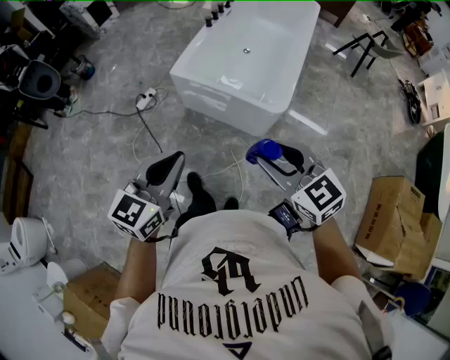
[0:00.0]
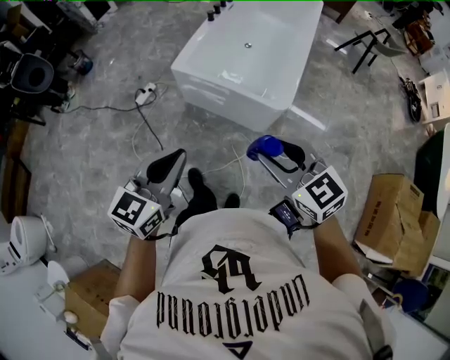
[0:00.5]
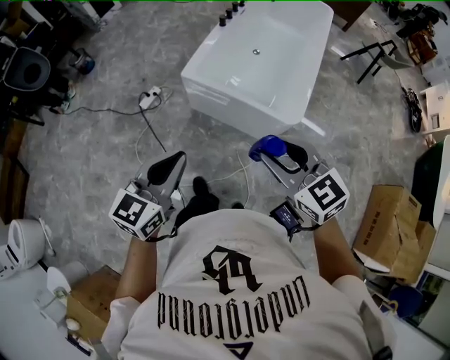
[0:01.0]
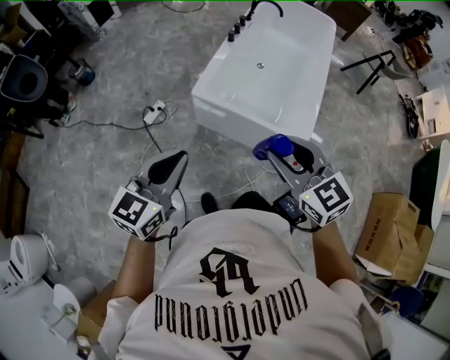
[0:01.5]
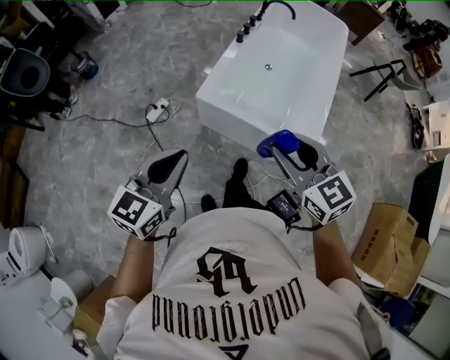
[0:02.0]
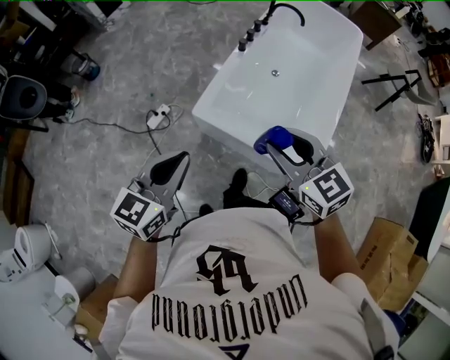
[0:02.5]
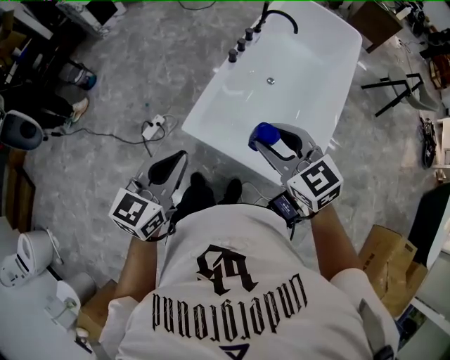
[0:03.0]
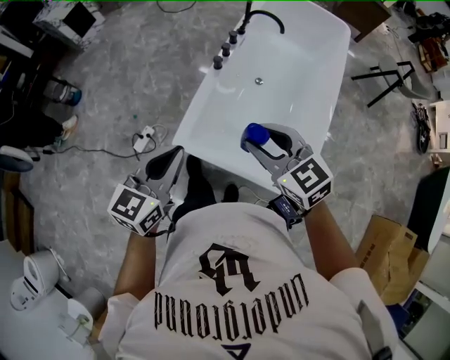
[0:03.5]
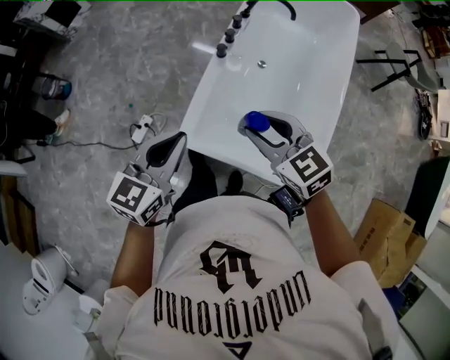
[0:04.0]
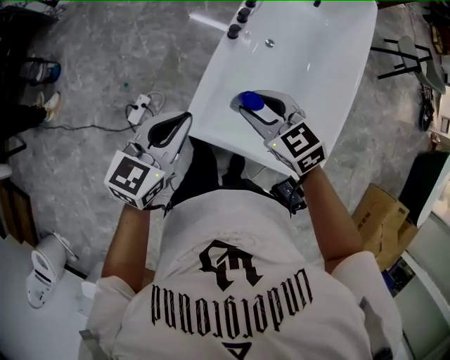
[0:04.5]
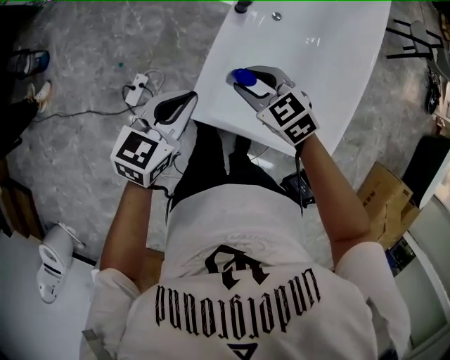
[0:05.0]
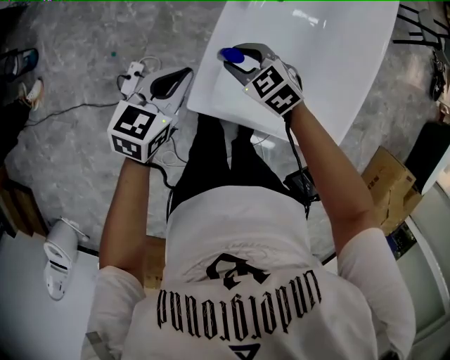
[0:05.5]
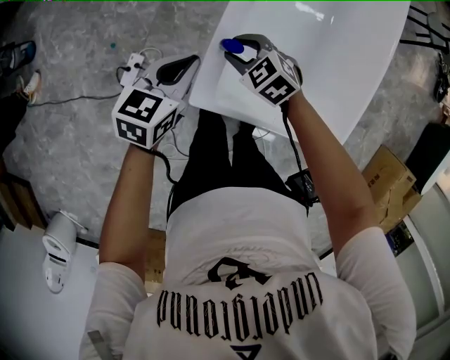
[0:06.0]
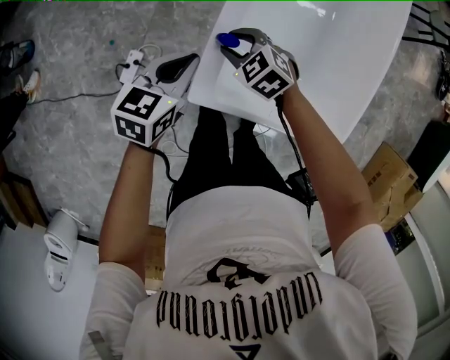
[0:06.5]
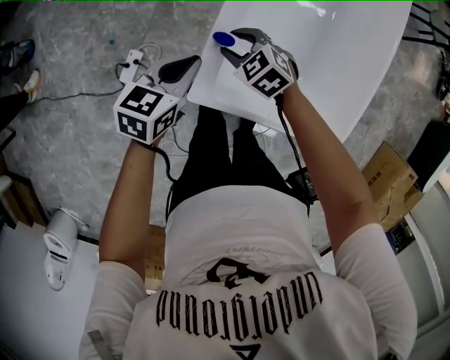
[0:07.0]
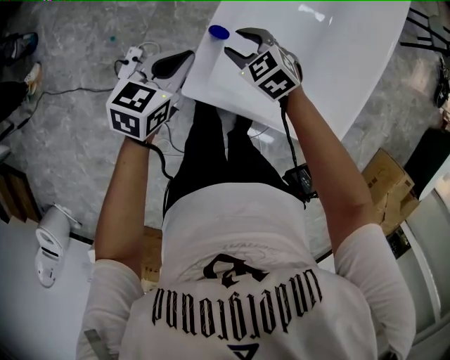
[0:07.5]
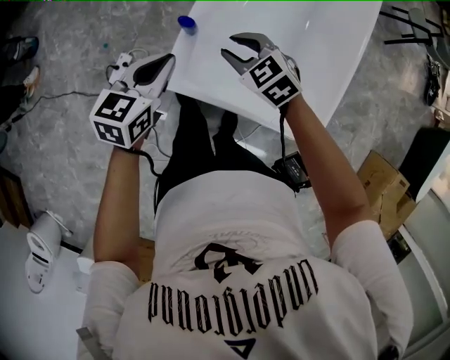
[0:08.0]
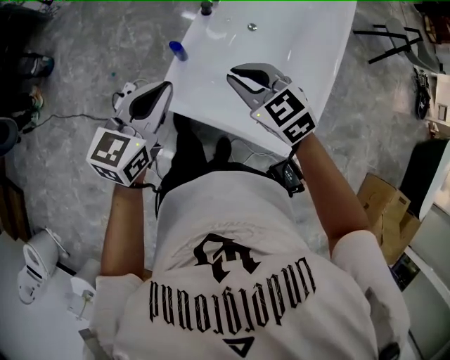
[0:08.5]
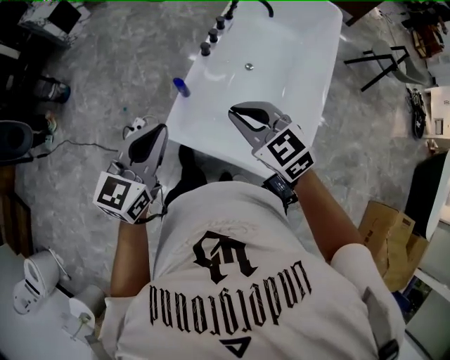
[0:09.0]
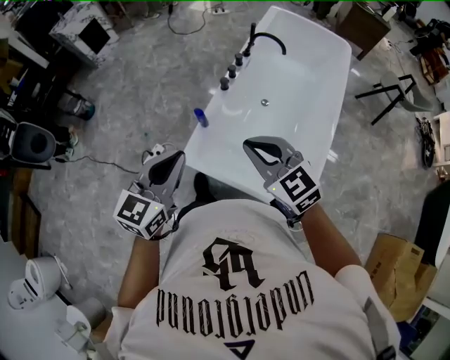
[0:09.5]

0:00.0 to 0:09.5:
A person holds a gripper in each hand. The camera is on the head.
0:00.0 to 0:02.0: The two grippers go some 30 cm forward and to the left.
0:02.0 to 0:04.0: The pair of grippers is taken forward, approximately 40 cm.
0:04.0 to 0:05.5: The left gripper shifts roughly 30 cm downward and forward. The right gripper shifts roughly 35 cm downward, to the left and forward, and turns by about 20 degrees.
0:07.5 to 0:09.5: Both grippers move upward and backward, about 50 cm. The left gripper swivels approximately 30 degrees; the right gripper points its fingers approximately 30 degrees further upward, and closes.

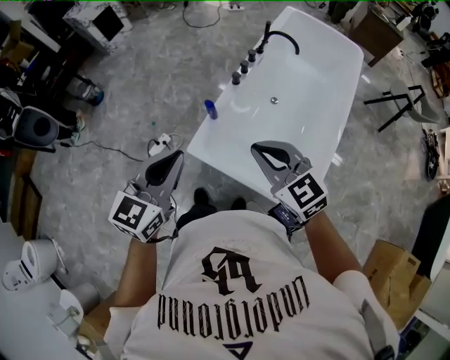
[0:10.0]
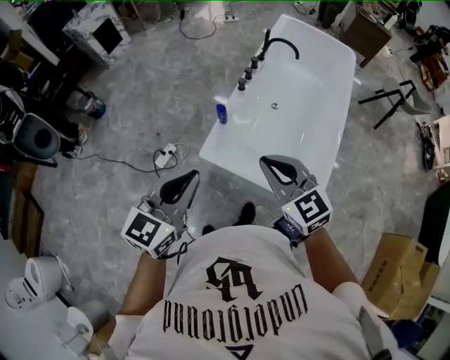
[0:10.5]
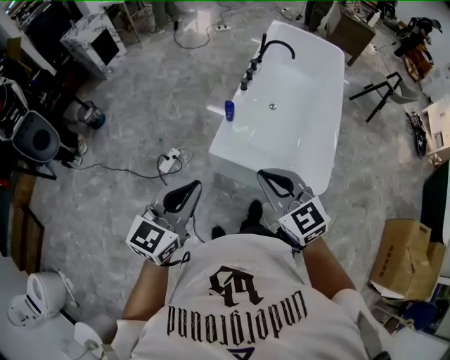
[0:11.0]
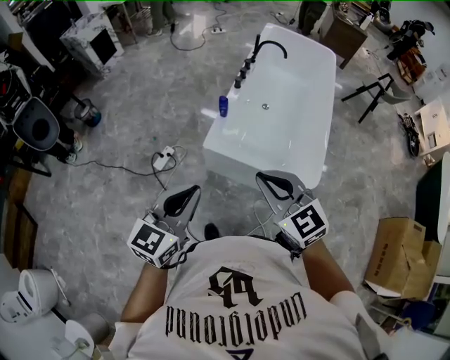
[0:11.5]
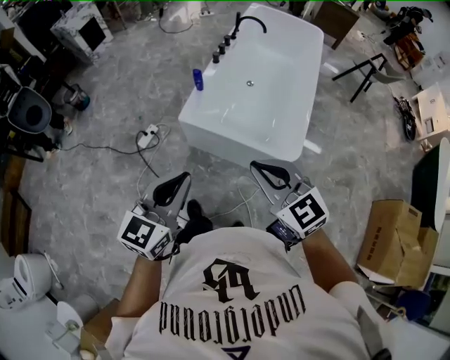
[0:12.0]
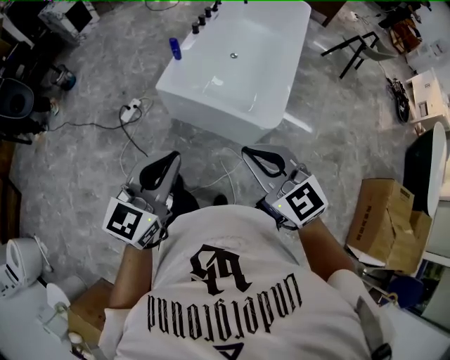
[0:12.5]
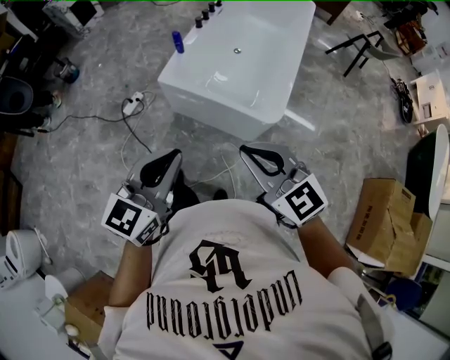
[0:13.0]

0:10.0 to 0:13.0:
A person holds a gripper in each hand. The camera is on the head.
0:10.0 to 0:11.5: The two grippers go about 30 cm backward and to the left.
0:11.5 to 0:13.0: The right gripper shifts approximately 30 cm backward and to the right; the left gripper is displaced to the right and backward by roughly 30 cm.

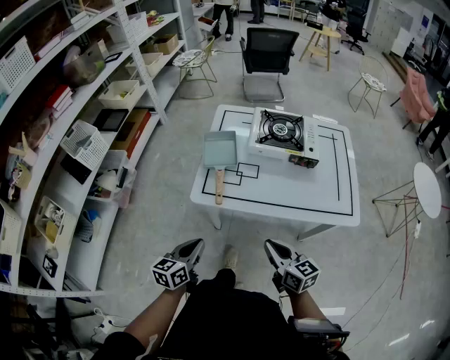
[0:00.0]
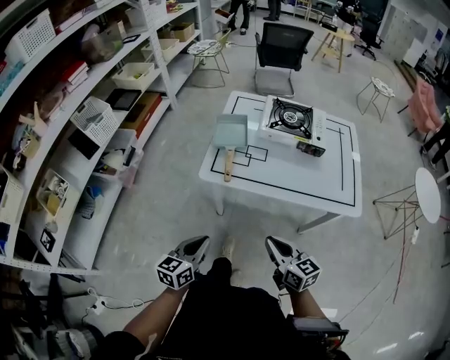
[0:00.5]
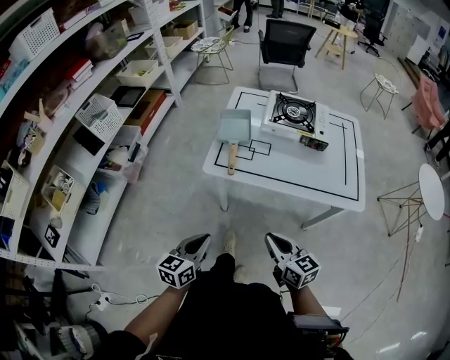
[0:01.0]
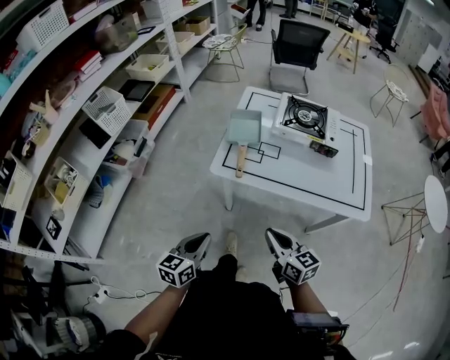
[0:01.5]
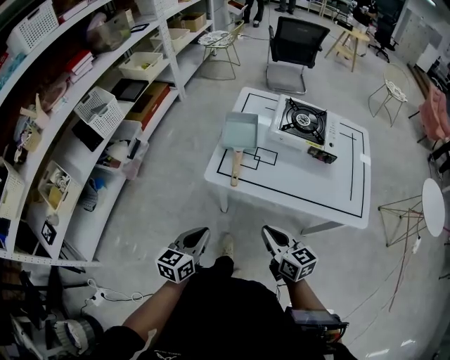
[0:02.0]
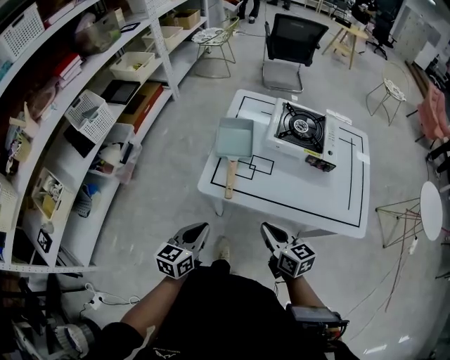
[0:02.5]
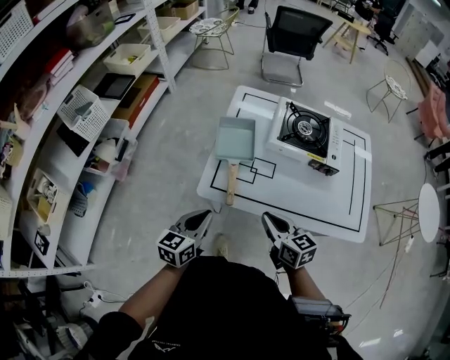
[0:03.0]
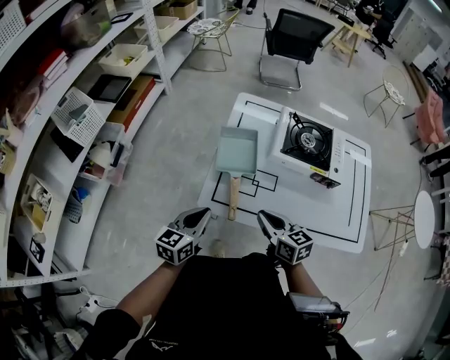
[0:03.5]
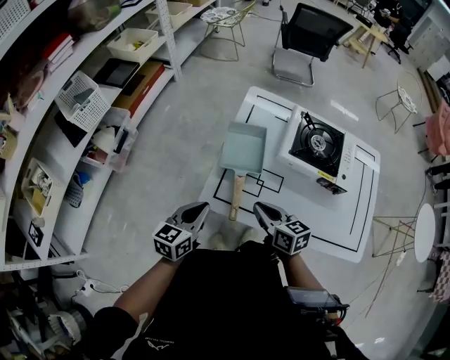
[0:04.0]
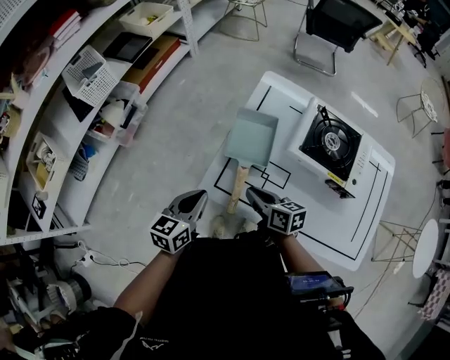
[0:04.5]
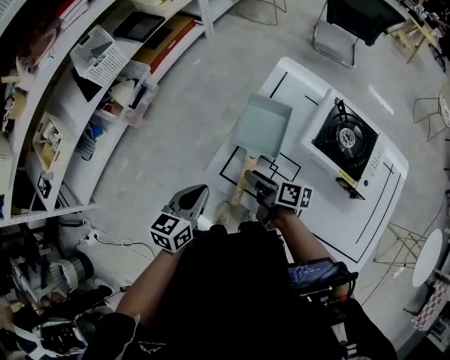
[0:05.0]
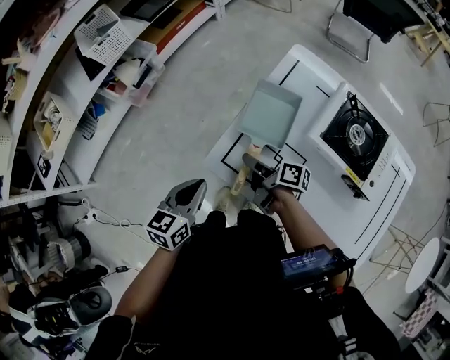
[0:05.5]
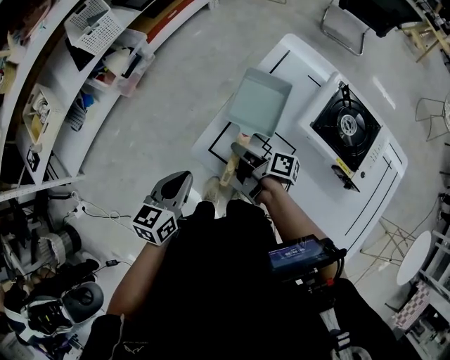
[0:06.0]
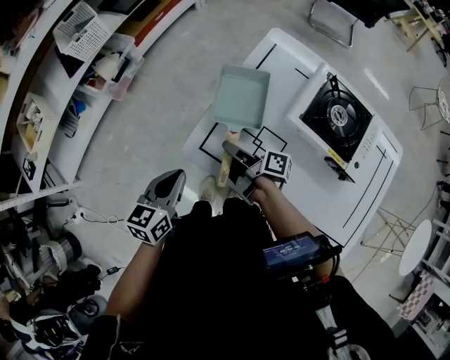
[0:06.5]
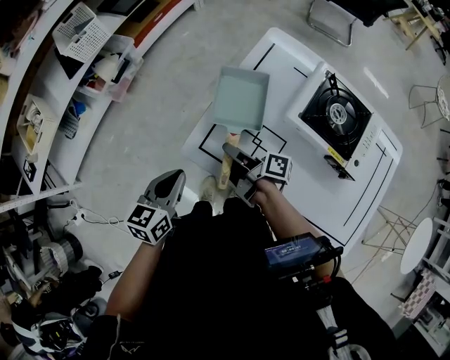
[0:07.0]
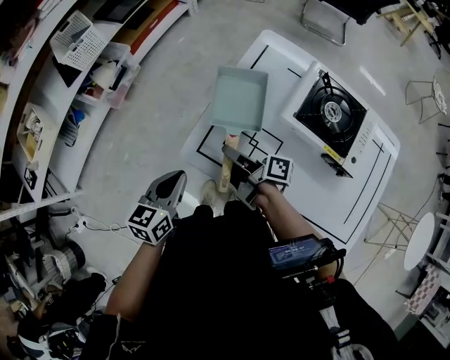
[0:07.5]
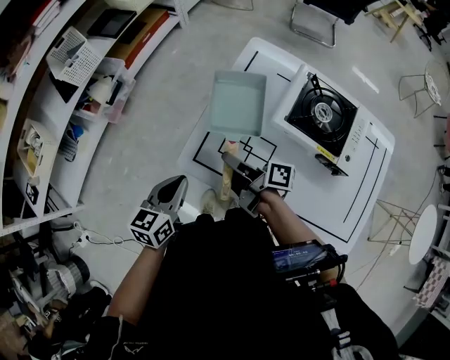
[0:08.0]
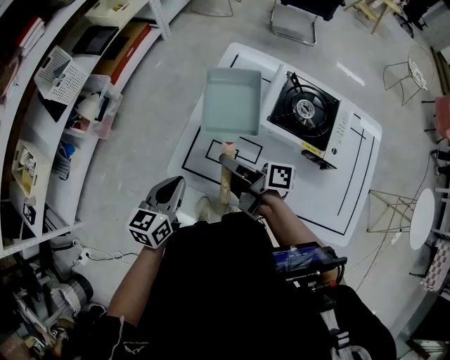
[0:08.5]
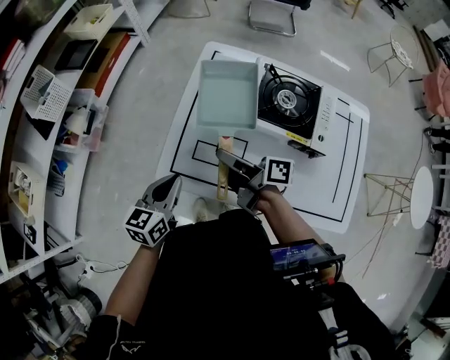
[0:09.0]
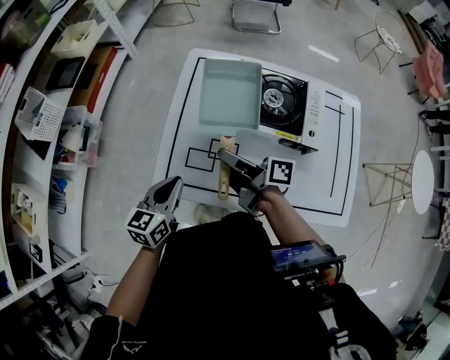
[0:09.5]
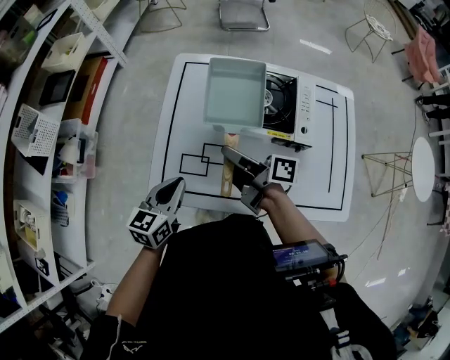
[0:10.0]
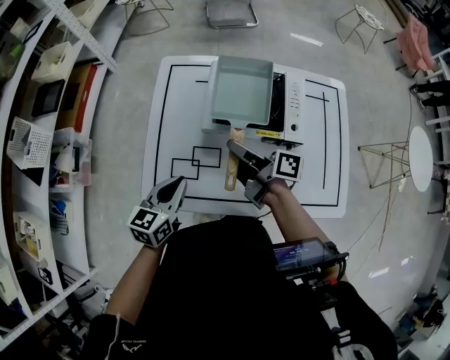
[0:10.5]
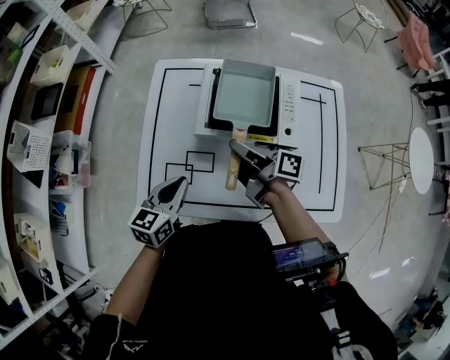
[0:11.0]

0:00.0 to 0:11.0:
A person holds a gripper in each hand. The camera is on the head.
0:00.0 to 0:02.0: The right gripper moves approximately 5 cm backward and comes back. The left gripper moves approximately 10 cm backward and comes back.
0:02.0 to 0:03.5: Both grippers move forward, some 20 cm.
0:03.5 to 0:05.5: The right gripper shifts by about 15 cm, rolls clockwise, seen from behind, by roughly 50 degrees, and opens its fingers. Meanwhile the left gripper changes its angle by approximately 20 degrees.
0:05.5 to 0:07.5: The grippers stay close to where they were, moving slightly.
0:07.5 to 0:09.0: The left gripper is displaced to the right by about 5 cm; the right gripper is displaced upward and to the right by approximately 10 cm.
0:09.0 to 0:11.0: The two grippers go roughly 15 cm to the right.

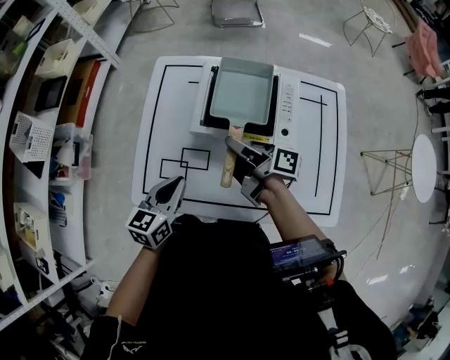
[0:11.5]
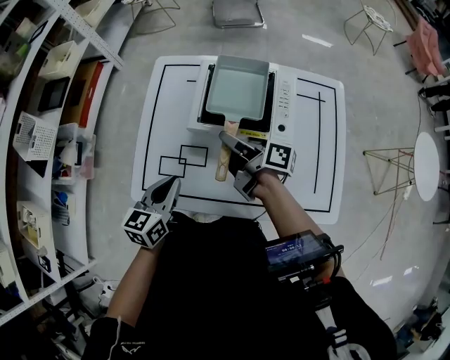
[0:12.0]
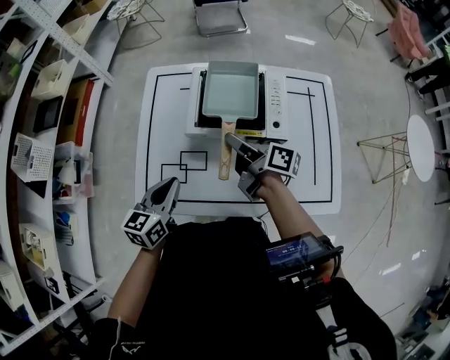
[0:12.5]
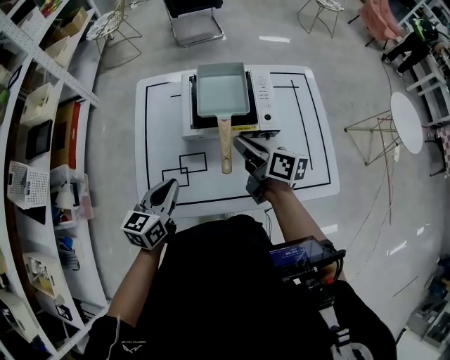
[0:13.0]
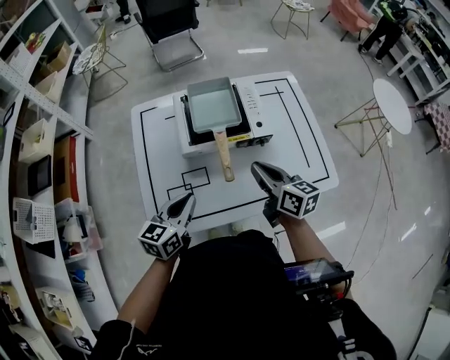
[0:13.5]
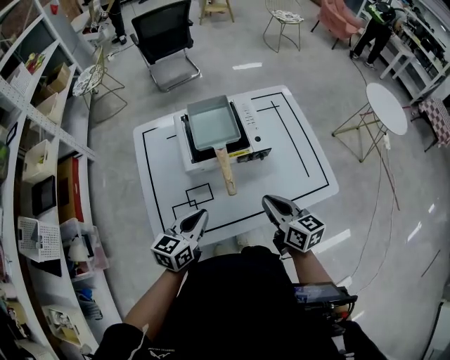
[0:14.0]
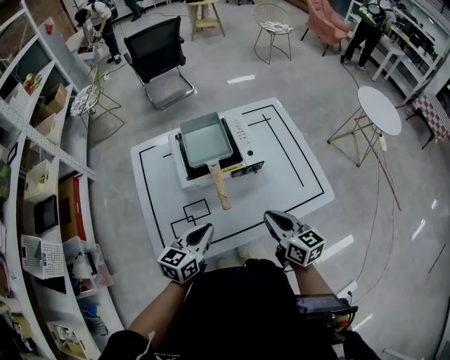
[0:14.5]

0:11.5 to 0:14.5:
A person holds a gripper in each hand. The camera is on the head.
0:11.5 to 0:13.0: The right gripper shifts by some 5 cm, and swivels approximately 30 degrees.
0:13.0 to 0:14.5: The right gripper moves backward and to the right, about 15 cm, and rotates some 30 degrees. The left gripper is displaced to the right by about 10 cm, and rotates approximately 20 degrees.
